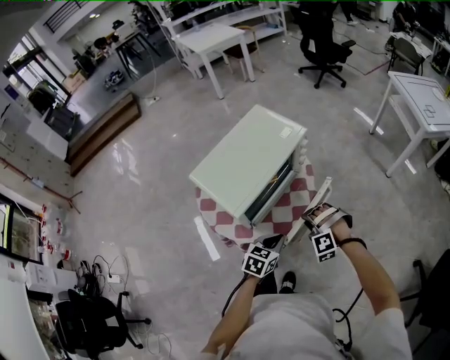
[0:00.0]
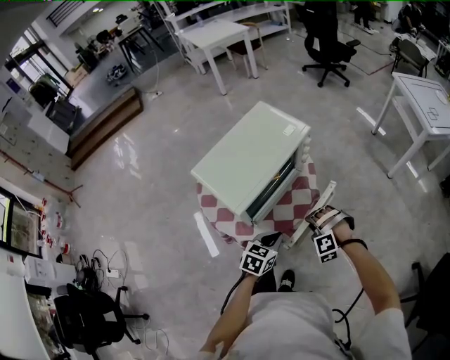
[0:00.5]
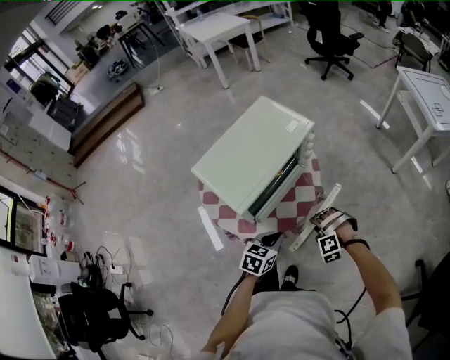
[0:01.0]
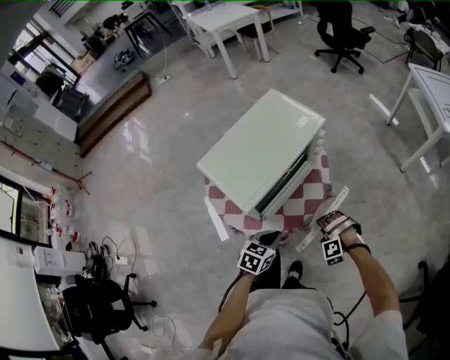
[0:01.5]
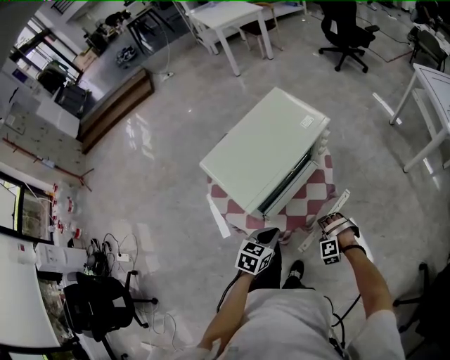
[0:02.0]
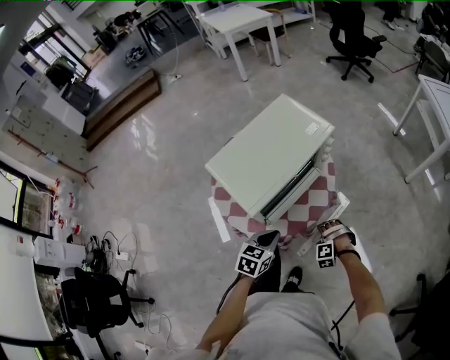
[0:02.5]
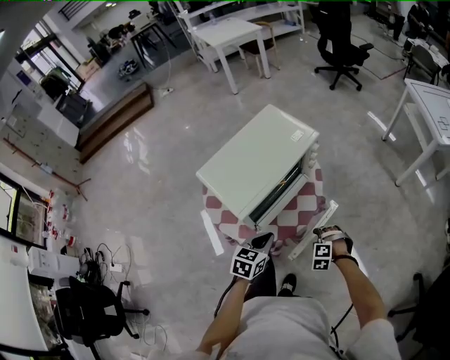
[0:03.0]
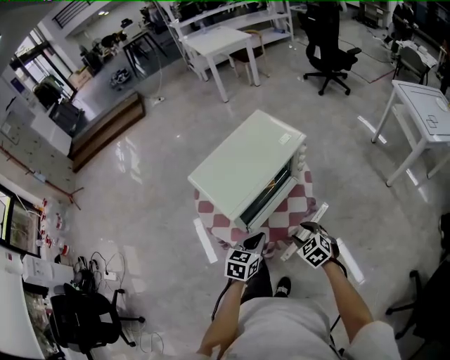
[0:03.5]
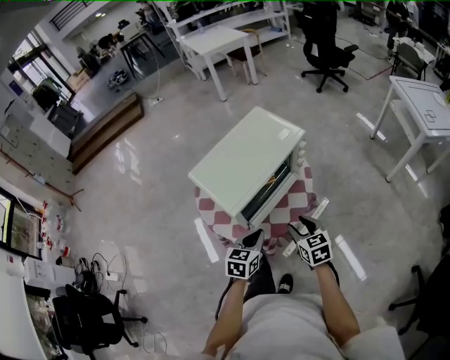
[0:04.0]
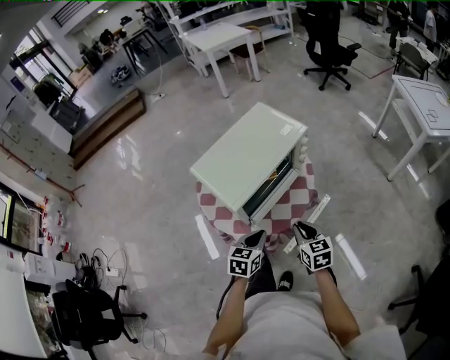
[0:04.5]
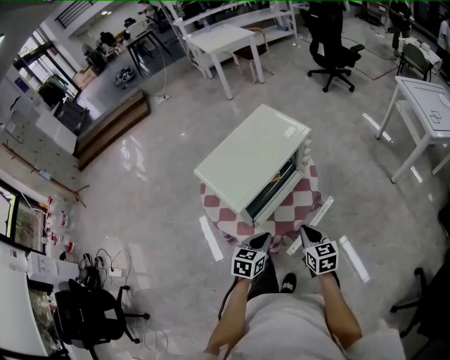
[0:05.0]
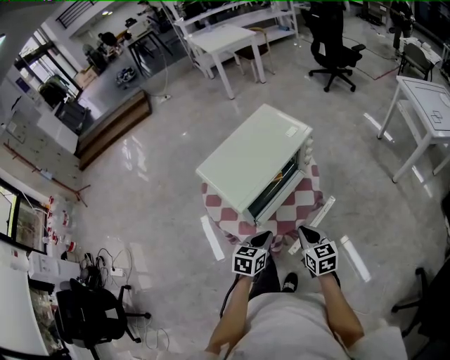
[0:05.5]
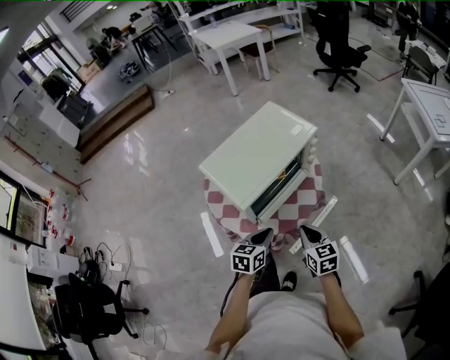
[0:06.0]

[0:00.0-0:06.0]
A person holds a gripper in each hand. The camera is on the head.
0:00.0 to 0:02.0: The right gripper heads downward, covering some 15 cm, and opens up. The left gripper goes some 5 cm to the left.
0:02.0 to 0:04.0: The right gripper travels upward by roughly 20 cm, and rotates around the line of its fingers by about 100 degrees, clockwise from behind.
0:04.0 to 0:06.0: The right gripper closes up.

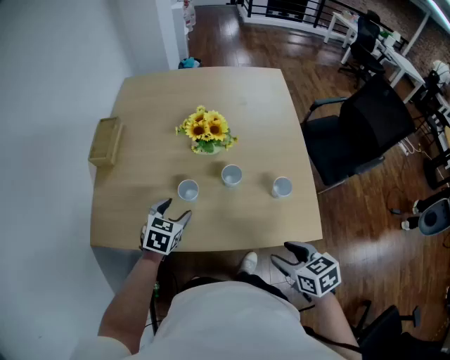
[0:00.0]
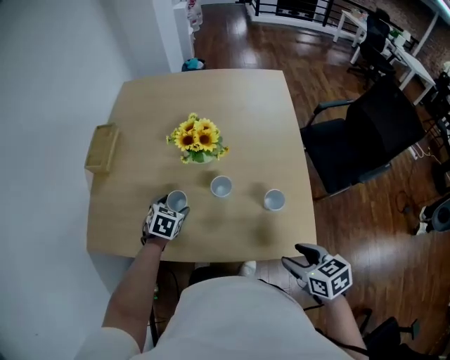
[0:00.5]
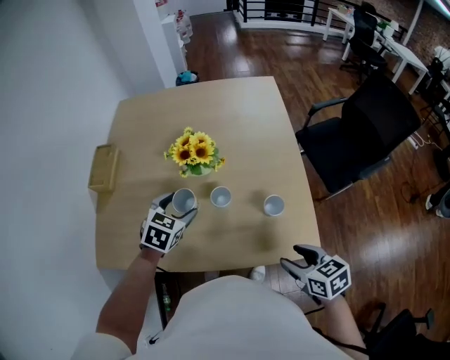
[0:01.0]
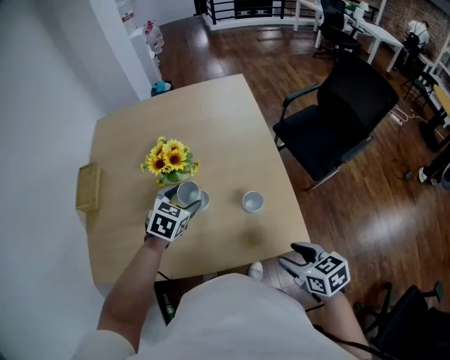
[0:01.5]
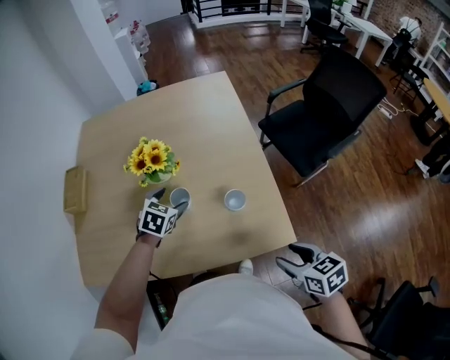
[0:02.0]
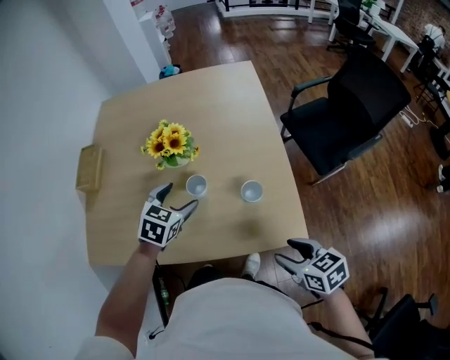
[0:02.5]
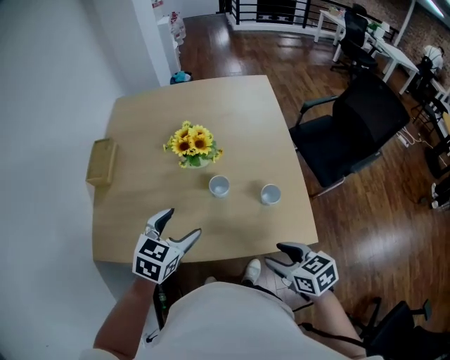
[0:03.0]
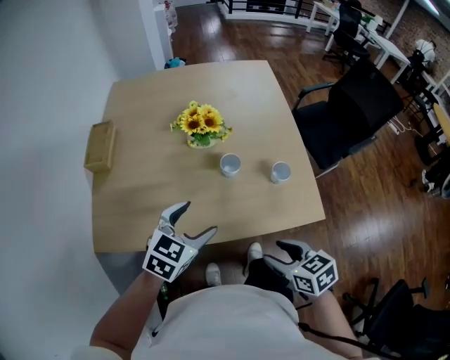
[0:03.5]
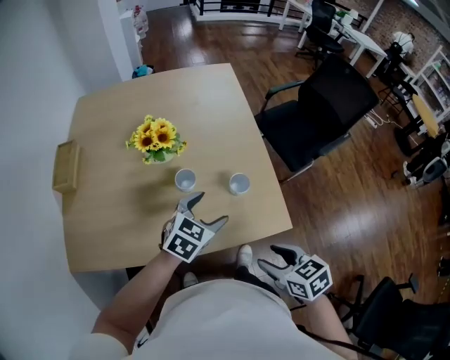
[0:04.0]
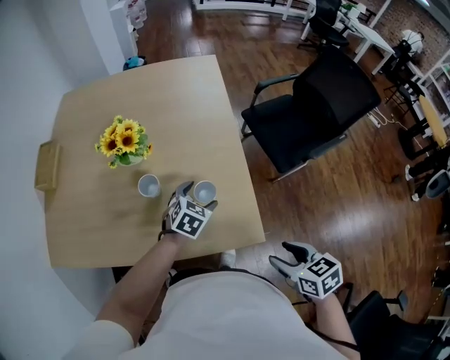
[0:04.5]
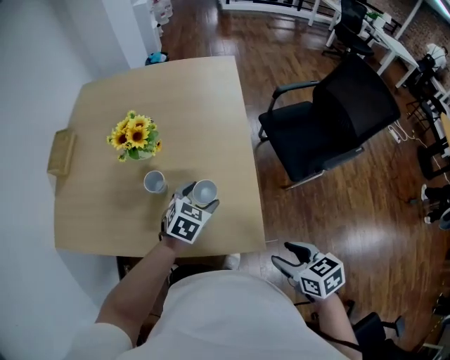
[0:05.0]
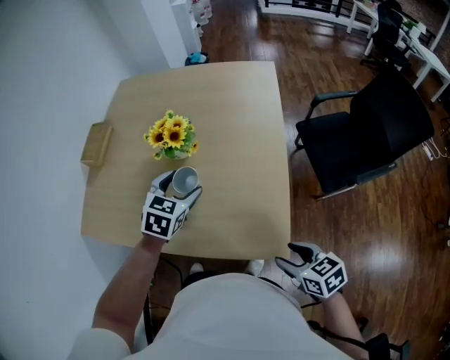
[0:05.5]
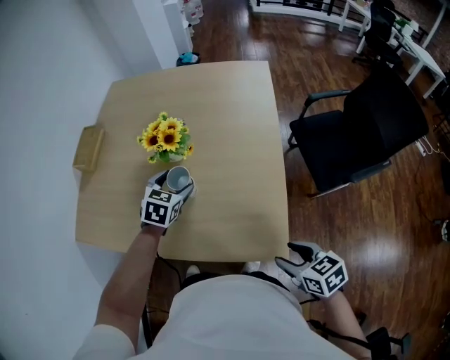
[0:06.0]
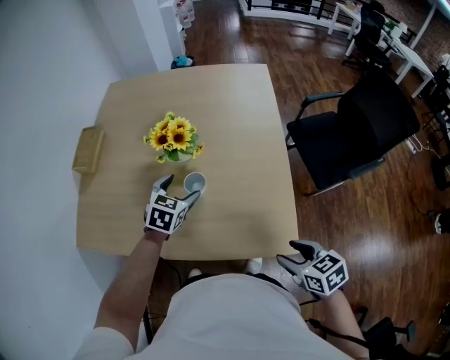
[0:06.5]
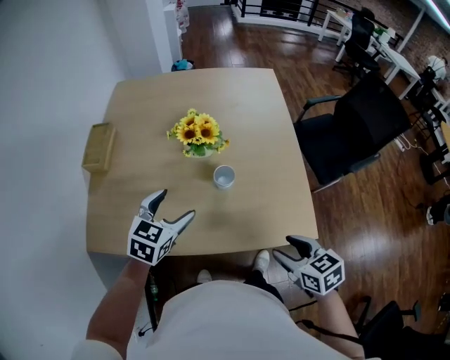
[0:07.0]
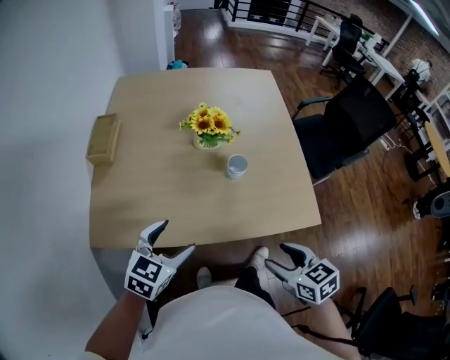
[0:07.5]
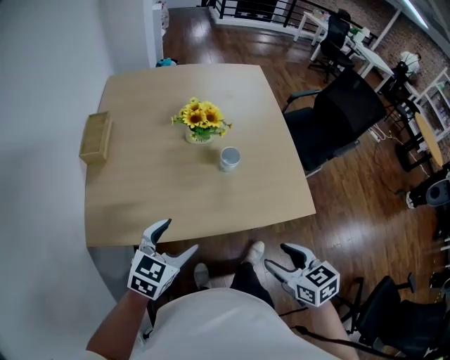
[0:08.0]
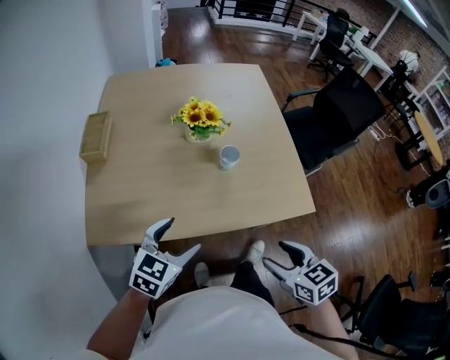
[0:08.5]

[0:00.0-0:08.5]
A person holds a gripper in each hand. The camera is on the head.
0:00.0 to 0:02.0: The left gripper goes some 20 cm to the right and forward. Meanwhile the right gripper is displaced to the right by approximately 15 cm.
0:02.0 to 0:04.0: The right gripper shifts approximately 10 cm to the left, while the left gripper shifts approximately 15 cm backward, to the right and upward, and changes its angle by some 20 degrees.
0:04.0 to 0:06.5: The left gripper goes up and down, roughly 15 cm each way, reversing 2 times, and rotates approximately 30 degrees.
0:06.5 to 0:08.5: The left gripper travels backward and to the left by about 30 cm, and turns by some 20 degrees, while the right gripper moves to the left and backward, roughly 25 cm.

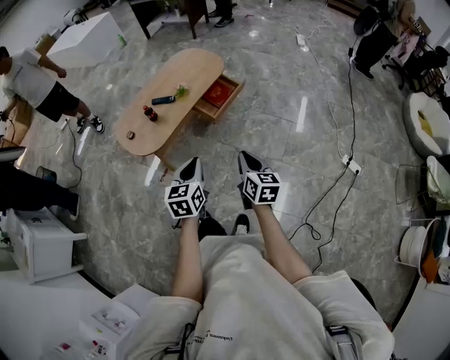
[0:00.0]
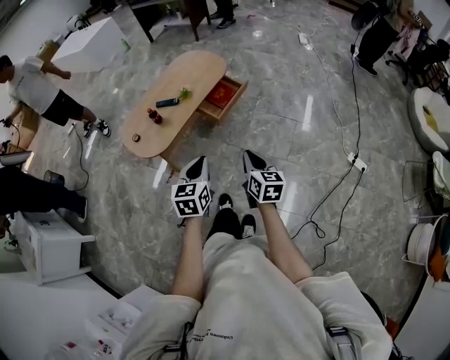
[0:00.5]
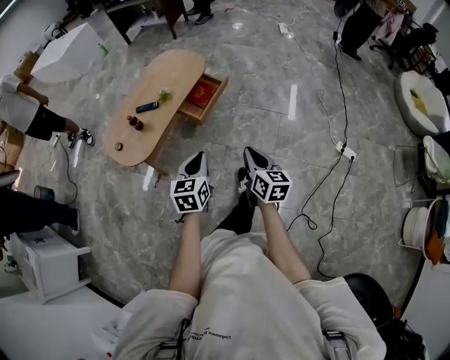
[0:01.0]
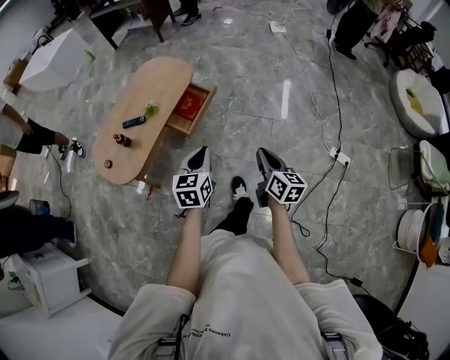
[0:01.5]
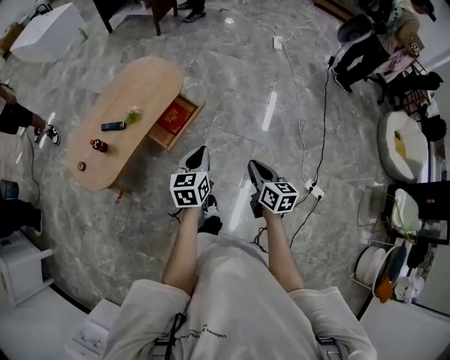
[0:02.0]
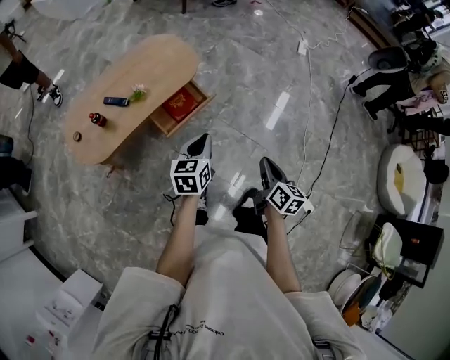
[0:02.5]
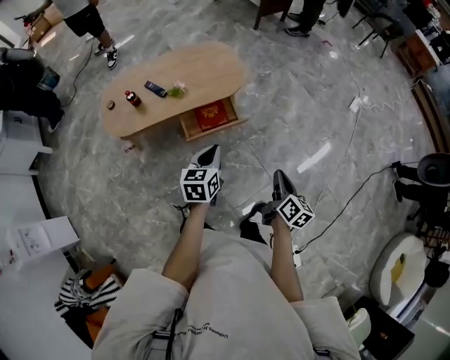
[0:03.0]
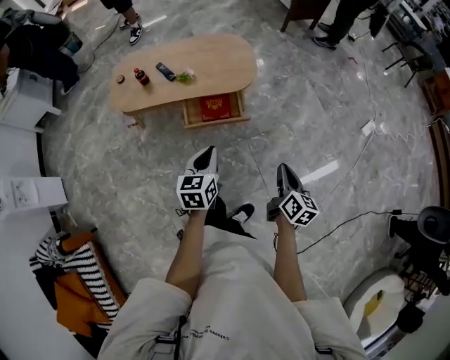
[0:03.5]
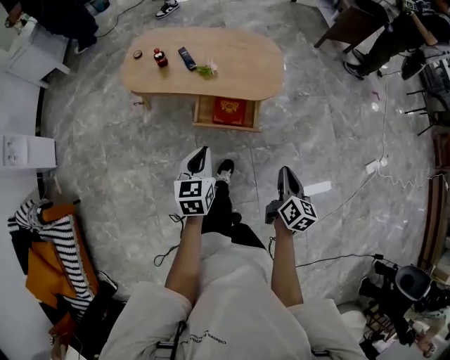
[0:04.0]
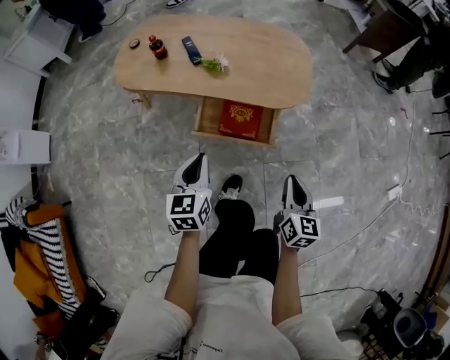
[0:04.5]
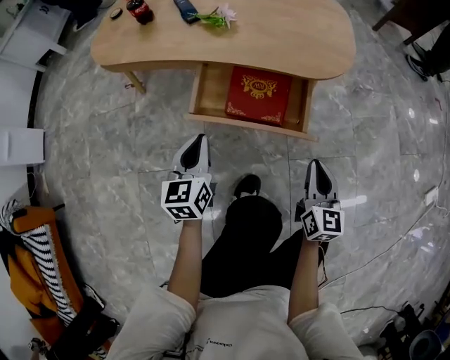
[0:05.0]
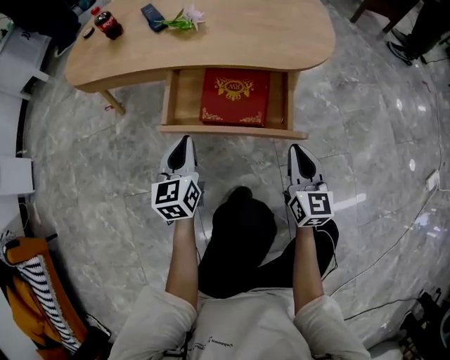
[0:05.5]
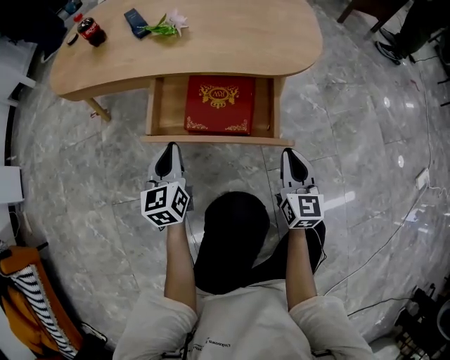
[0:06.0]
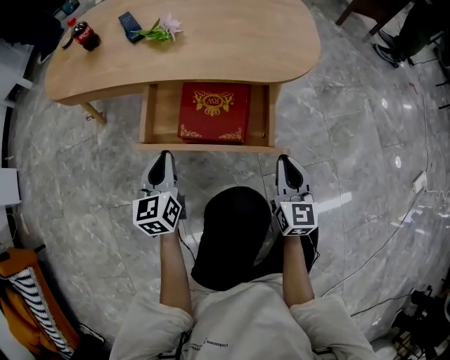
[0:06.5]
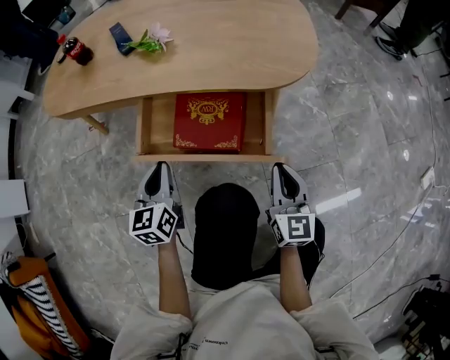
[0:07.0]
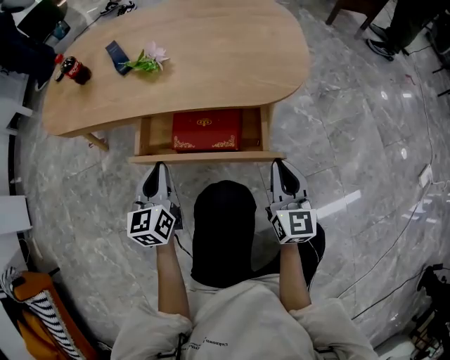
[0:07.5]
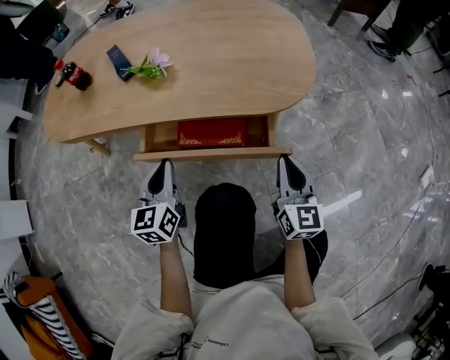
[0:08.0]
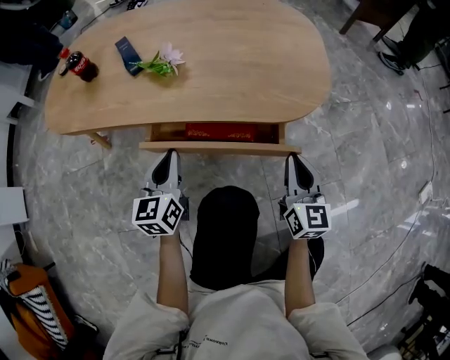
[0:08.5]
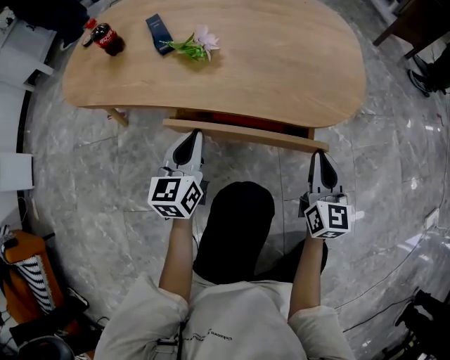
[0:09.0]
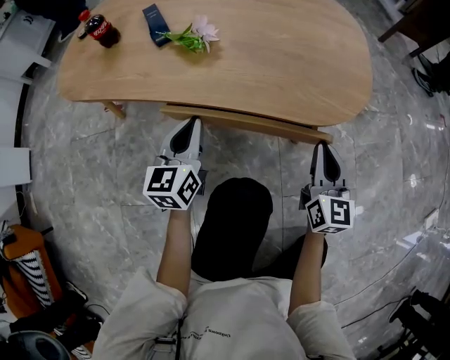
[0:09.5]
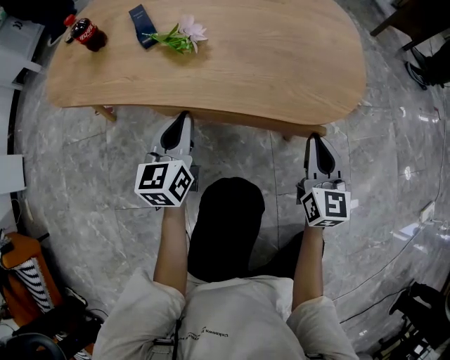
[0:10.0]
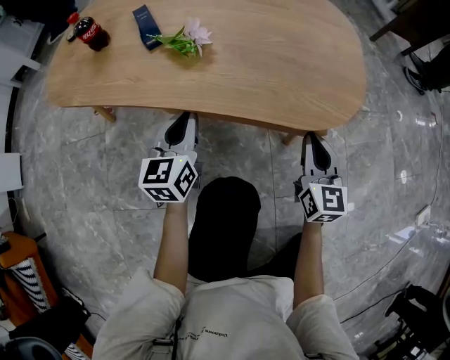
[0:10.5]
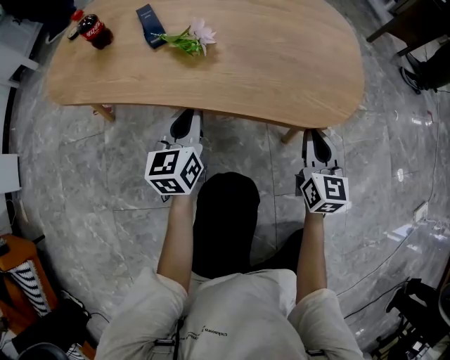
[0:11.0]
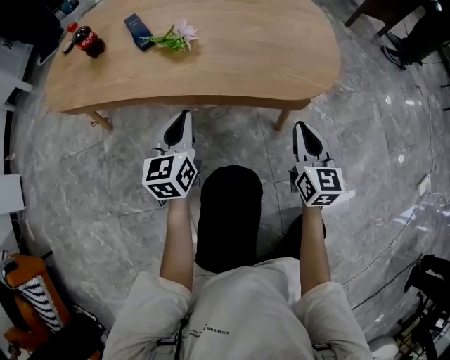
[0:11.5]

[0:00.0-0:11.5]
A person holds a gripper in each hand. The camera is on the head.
0:00.0 to 0:02.0: Both grippers move forward and to the right, about 35 cm.
0:02.0 to 0:04.0: The right gripper ends up approximately 35 cm from where it was, and changes its angle by roughly 40 degrees; the left gripper ends up about 15 cm from where it was, and rotates about 60 degrees.
0:04.0 to 0:06.0: The right gripper heads downward and forward, covering approximately 50 cm, and rotates about 30 degrees. Meanwhile the left gripper goes about 50 cm downward.
0:06.0 to 0:07.5: The right gripper ends up some 5 cm from where it was. Meanwhile the left gripper moves some 5 cm.
0:07.5 to 0:09.5: The grippers both shift forward by about 10 cm.
0:09.5 to 0:11.5: The grippers make only small movements.

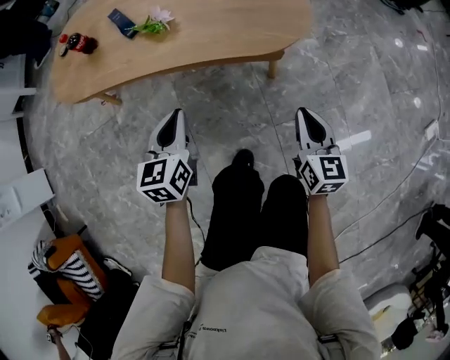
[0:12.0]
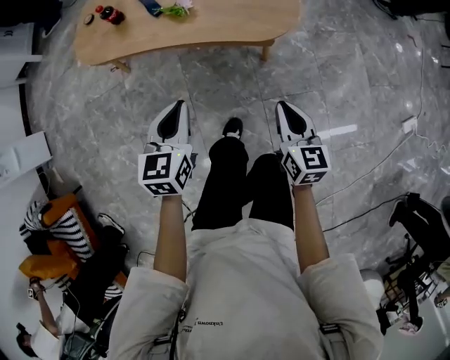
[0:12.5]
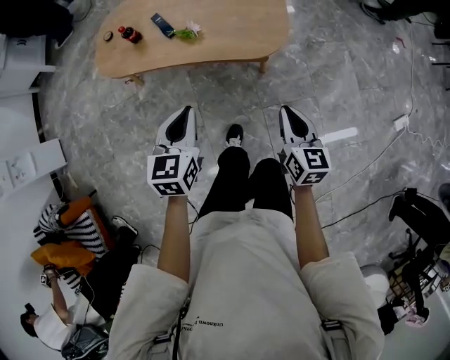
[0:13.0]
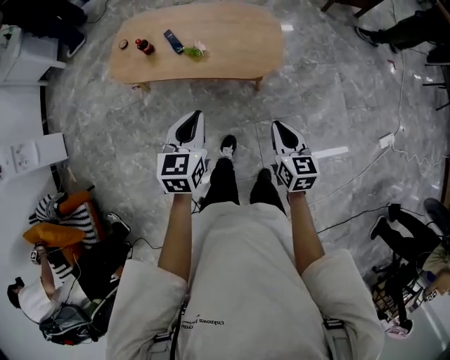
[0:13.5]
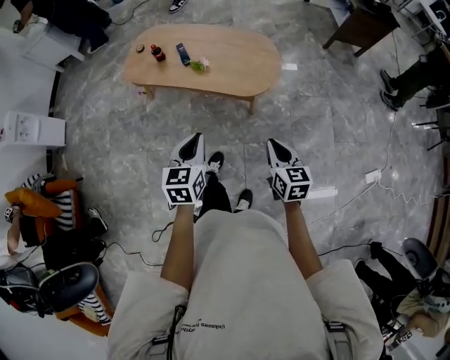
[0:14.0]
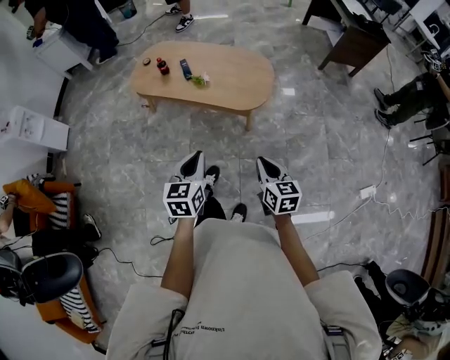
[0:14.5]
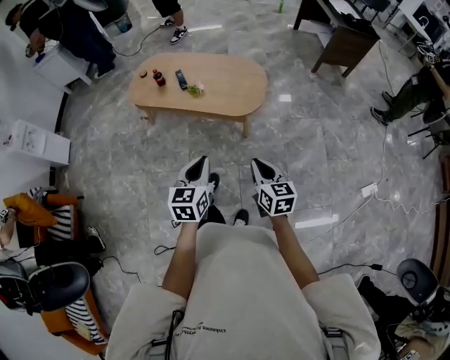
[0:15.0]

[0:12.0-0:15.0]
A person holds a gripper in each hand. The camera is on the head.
0:12.0 to 0:13.5: The two grippers go some 40 cm upward.
0:13.5 to 0:15.0: The right gripper travels backward by approximately 15 cm; the left gripper moves backward and to the right, roughly 20 cm.
